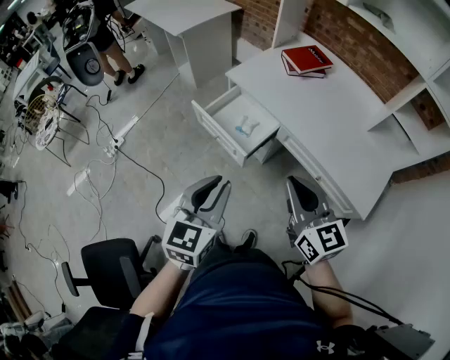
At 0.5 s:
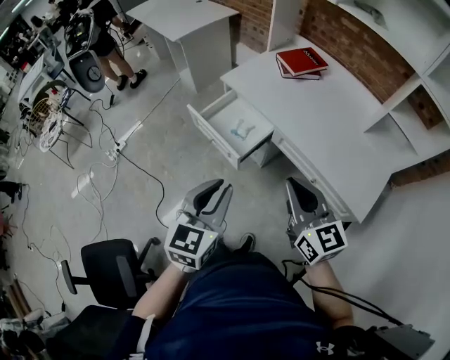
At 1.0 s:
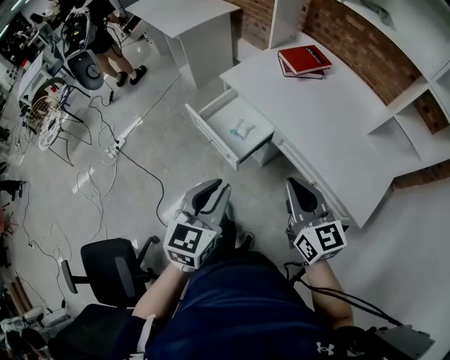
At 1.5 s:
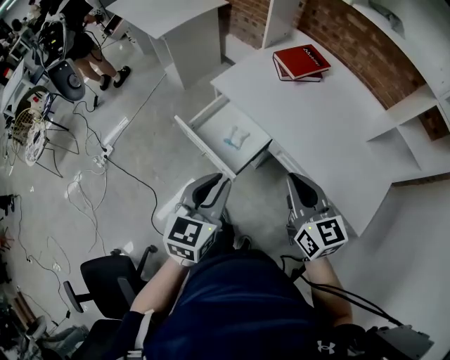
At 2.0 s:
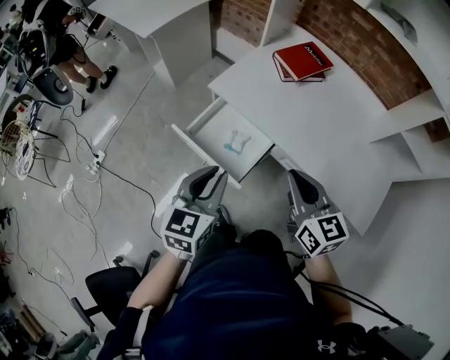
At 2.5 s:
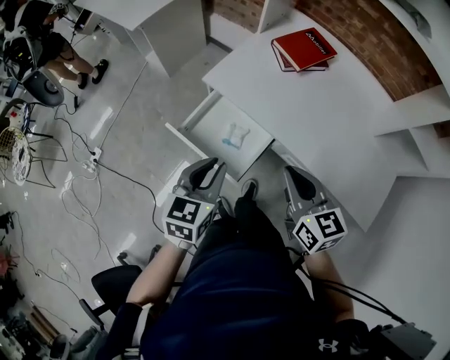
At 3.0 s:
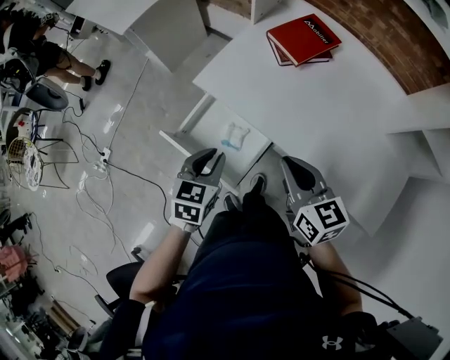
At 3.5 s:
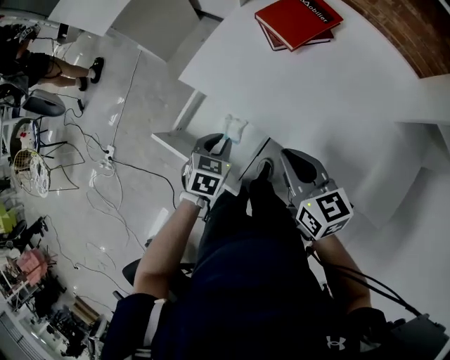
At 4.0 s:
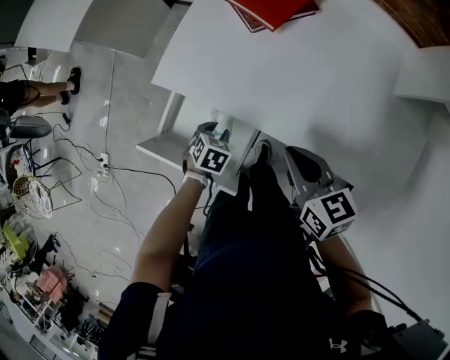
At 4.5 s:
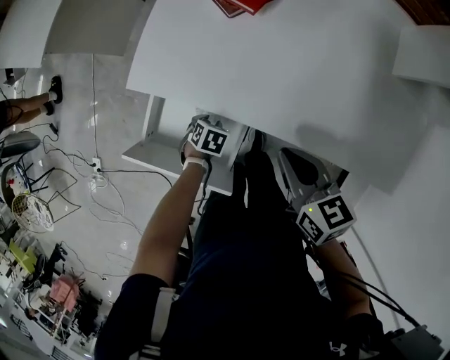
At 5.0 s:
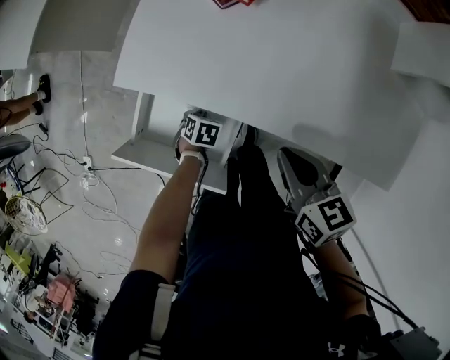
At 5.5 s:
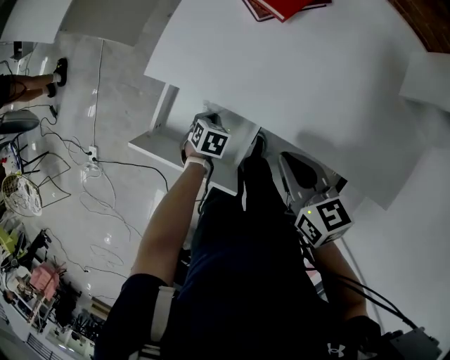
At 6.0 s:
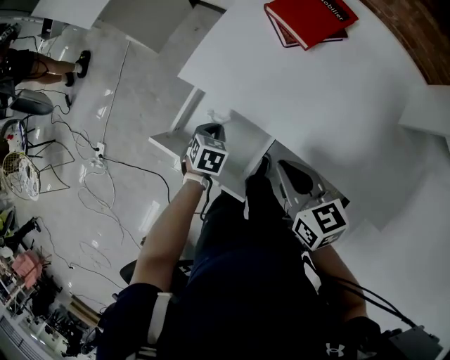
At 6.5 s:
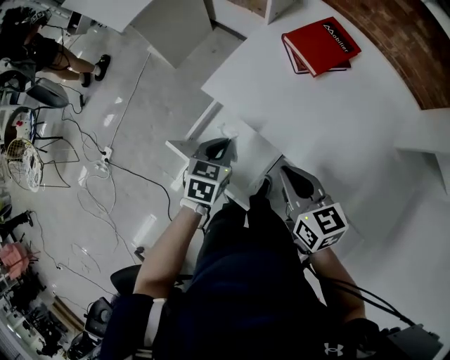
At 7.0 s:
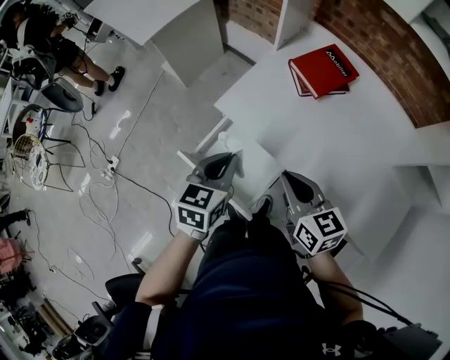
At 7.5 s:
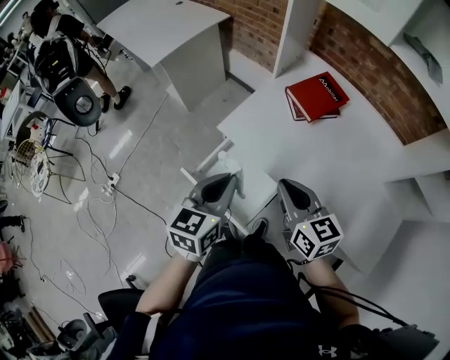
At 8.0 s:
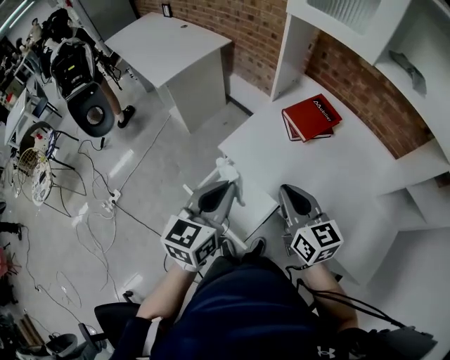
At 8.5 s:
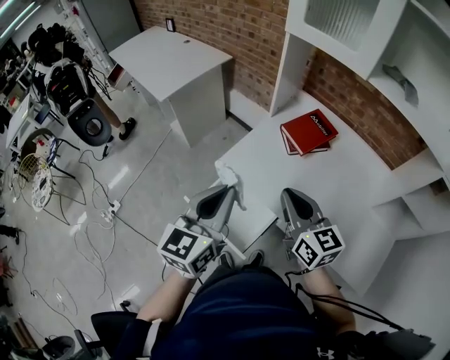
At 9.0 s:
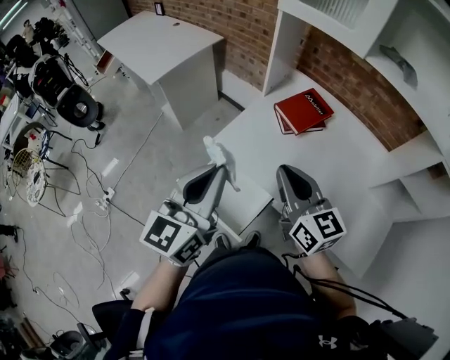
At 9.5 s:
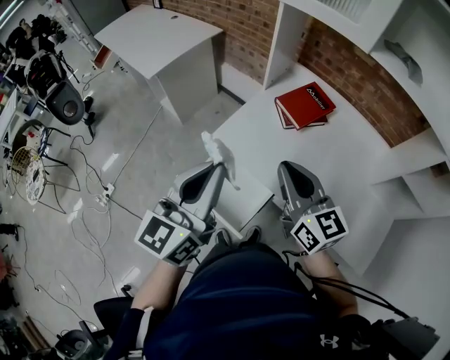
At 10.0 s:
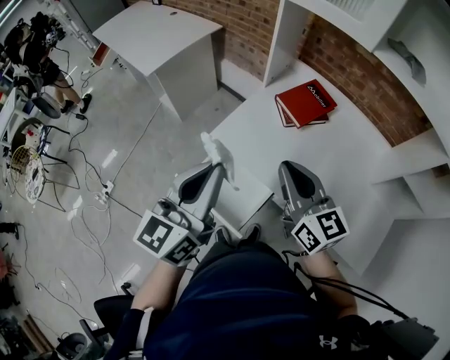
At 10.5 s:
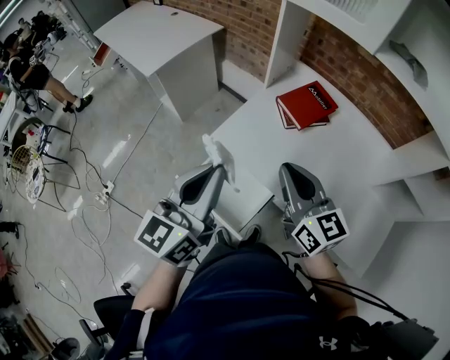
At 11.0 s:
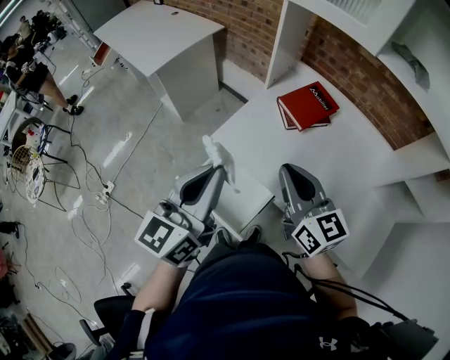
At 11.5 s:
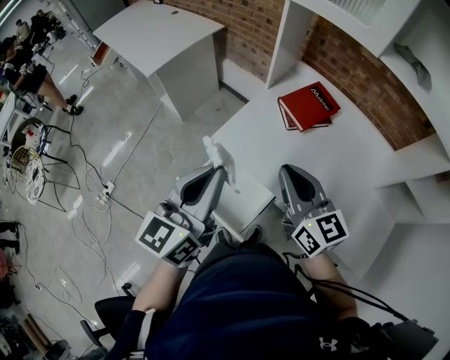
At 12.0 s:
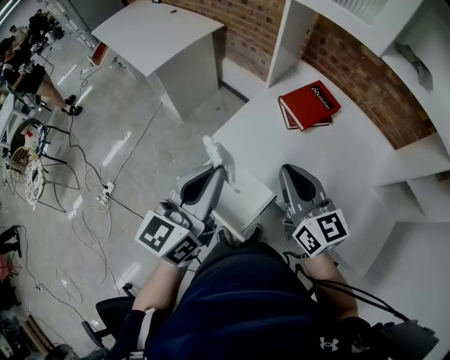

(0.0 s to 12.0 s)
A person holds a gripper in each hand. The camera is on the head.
0.0 s - 2.0 s: Both grippers move forward, about 20 cm.
2.0 s - 4.0 s: The left gripper is displaced downward and forward by approximately 35 cm, and angles its fingers downward, by about 50 degrees. Meanwhile the right gripper travels downward and forward by approximately 15 cm, and rotates some 20 degrees.
4.0 s - 6.0 s: The right gripper moves some 5 cm; the left gripper reaches approximately 10 cm downward, then returns, and closes its fingers.
6.0 s - 8.0 s: The right gripper is displaced upward by some 15 cm, and turns by some 20 degrees. The left gripper moves upward, approximately 35 cm, and tilts its fingers about 50 degrees upward.
8.0 s - 10.0 s: The right gripper shifts some 5 cm upward; the left gripper goes roughly 10 cm upward.
10.0 s - 12.0 s: The grippers stay close to where they were, moving slightly.

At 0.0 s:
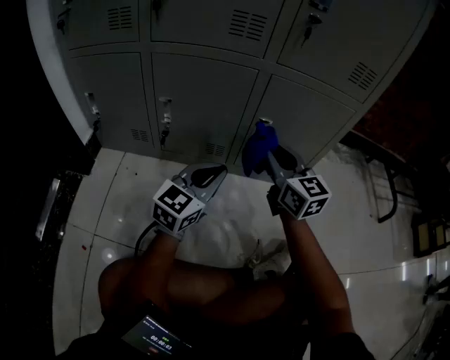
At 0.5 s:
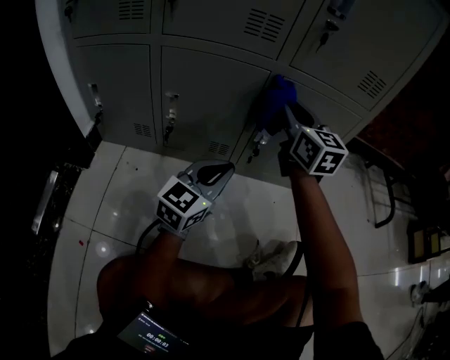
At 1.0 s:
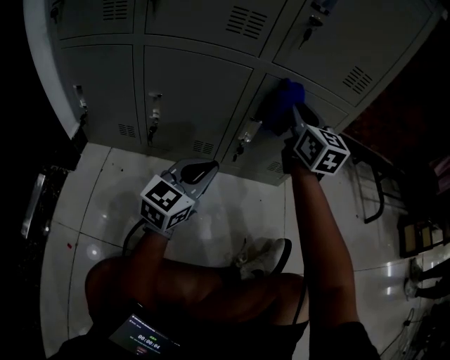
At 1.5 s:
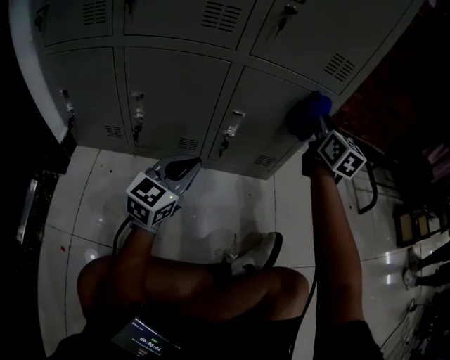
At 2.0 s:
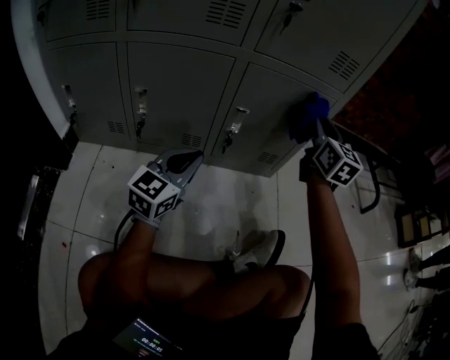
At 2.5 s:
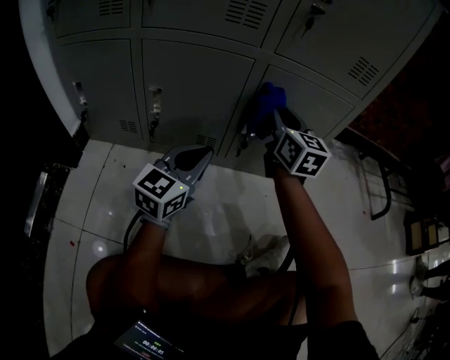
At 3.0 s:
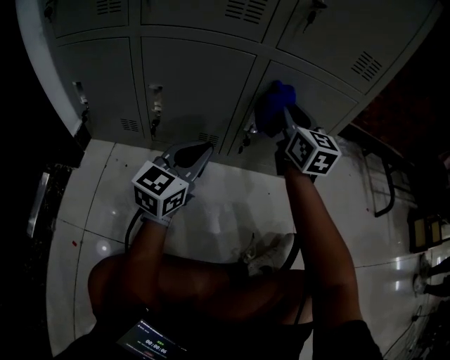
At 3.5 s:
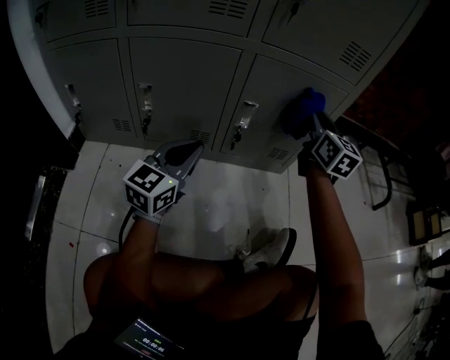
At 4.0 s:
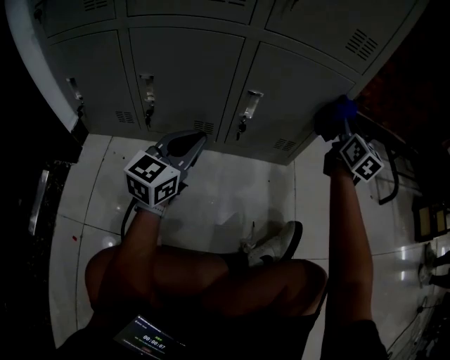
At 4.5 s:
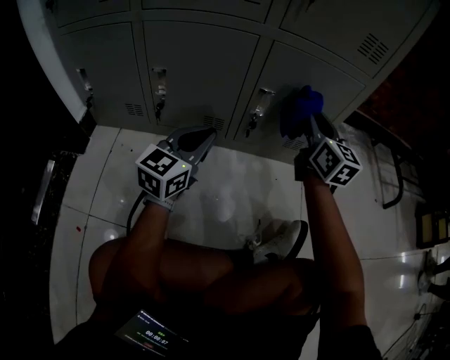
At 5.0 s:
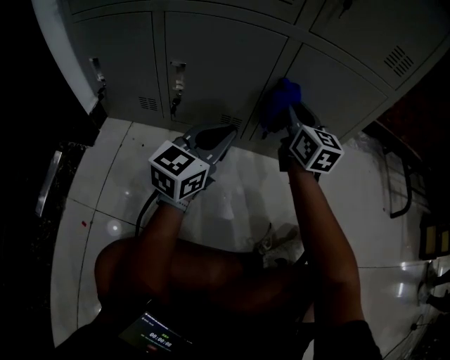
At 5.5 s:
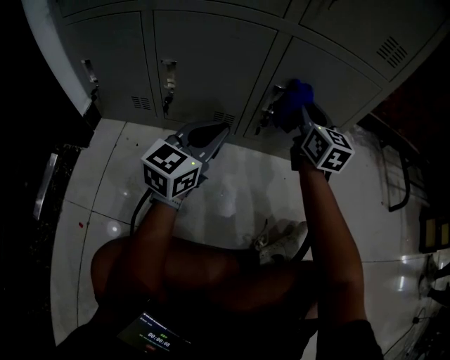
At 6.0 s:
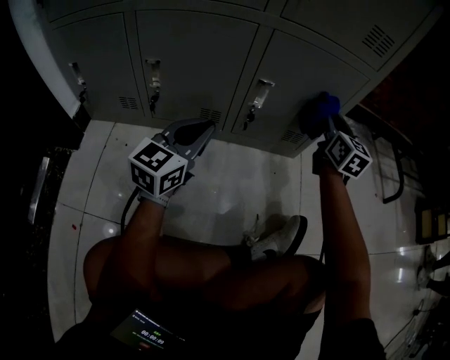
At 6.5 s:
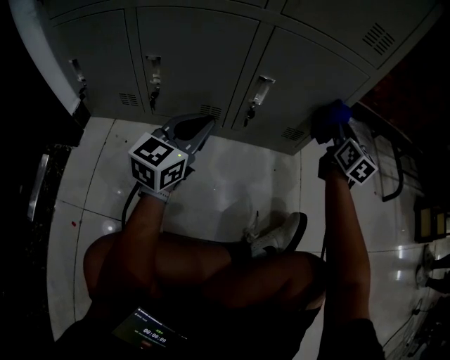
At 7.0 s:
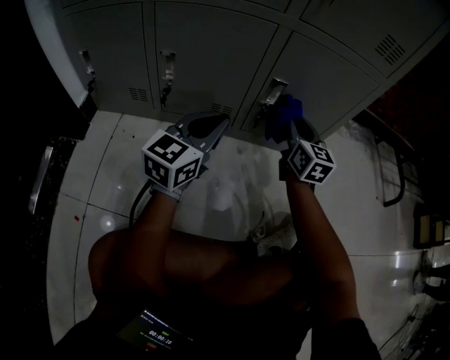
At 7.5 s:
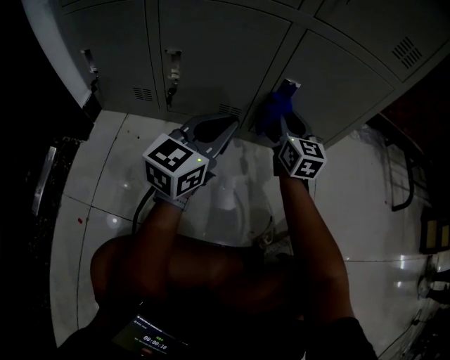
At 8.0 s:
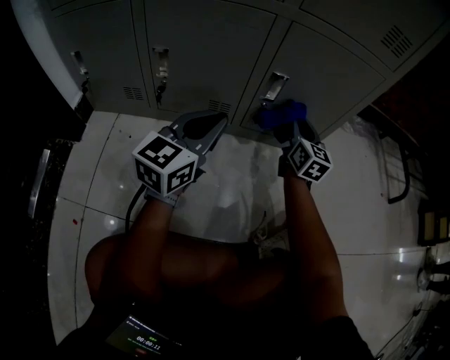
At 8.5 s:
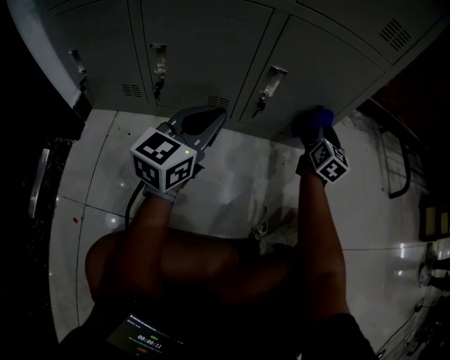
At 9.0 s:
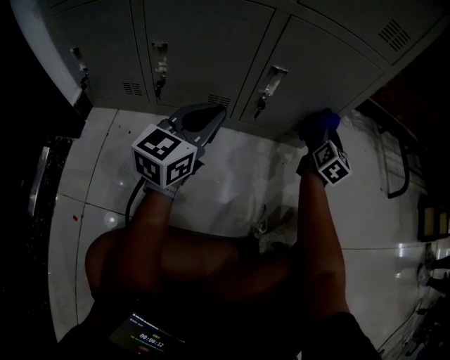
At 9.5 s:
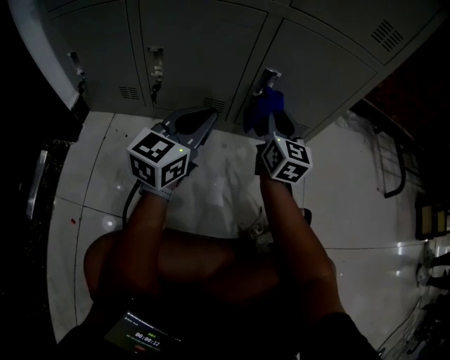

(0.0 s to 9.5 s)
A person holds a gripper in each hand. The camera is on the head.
0.0 s - 2.0 s: The right gripper shifts roughly 20 cm to the right, forward and upward, and swivels some 30 degrees.
2.0 s - 4.0 s: The right gripper moves downward, about 5 cm, and moves roughly 15 cm to the left and comes back.
4.0 s - 5.5 s: The right gripper moves to the left, approximately 20 cm.
5.5 s - 7.5 s: The right gripper moves downward, some 10 cm, and goes to the right and returns, roughly 20 cm each way.
7.5 s - 9.5 s: The right gripper travels to the right and back again, some 20 cm each way.

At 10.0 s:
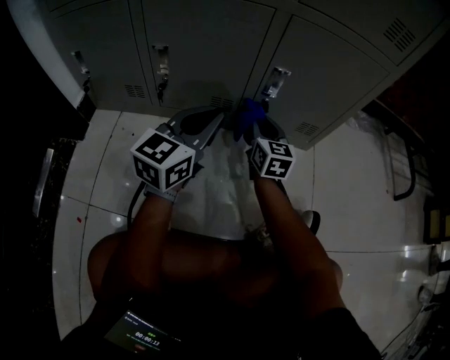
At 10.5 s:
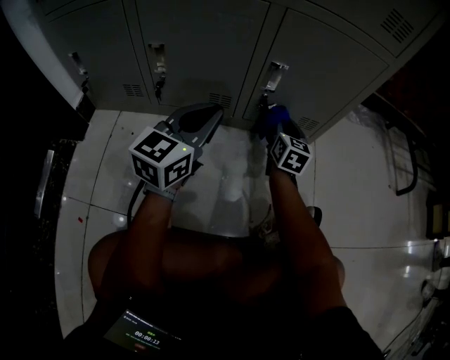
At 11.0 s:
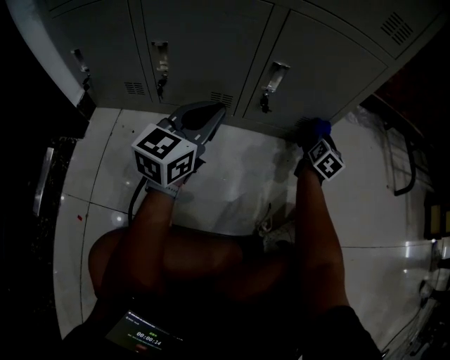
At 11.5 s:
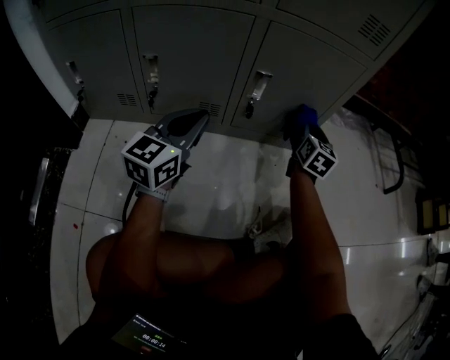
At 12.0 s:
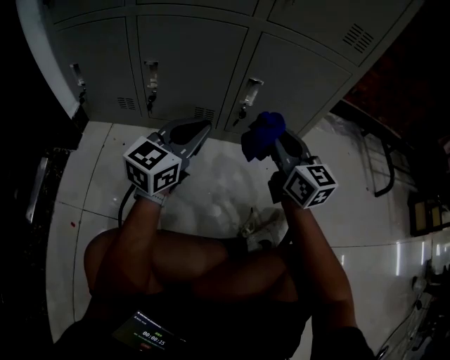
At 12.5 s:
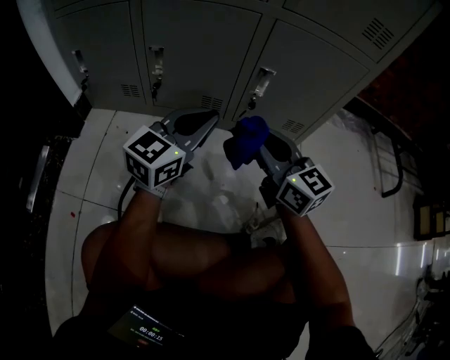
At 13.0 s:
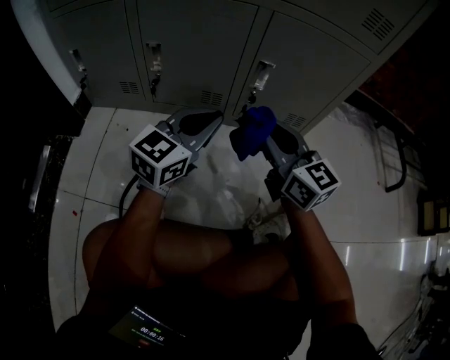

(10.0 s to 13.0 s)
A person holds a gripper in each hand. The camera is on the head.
10.0 s - 11.5 s: The right gripper is displaced to the right by approximately 20 cm, and turns by approximately 20 degrees.
11.5 s - 13.0 s: The right gripper shifts some 25 cm to the left, backward and upward, and swivels about 50 degrees.

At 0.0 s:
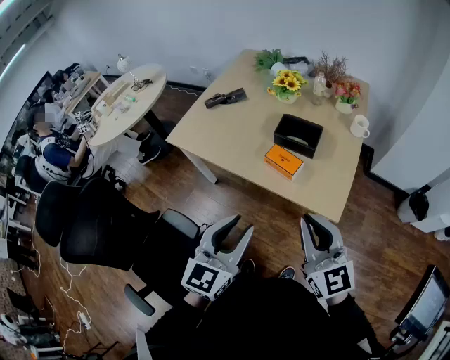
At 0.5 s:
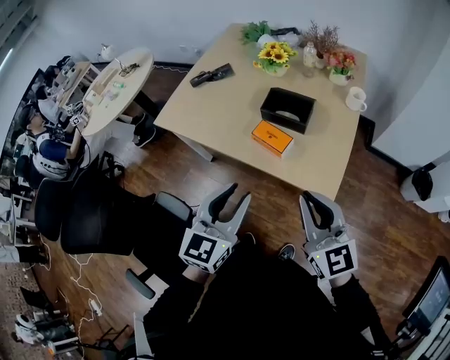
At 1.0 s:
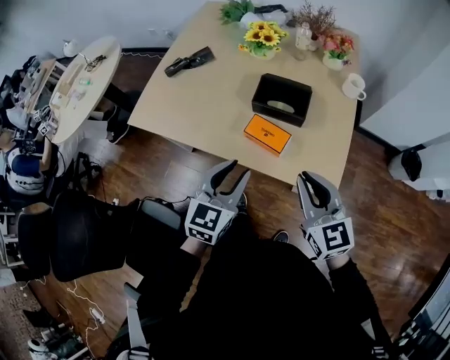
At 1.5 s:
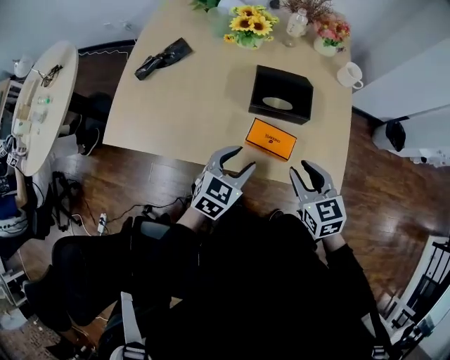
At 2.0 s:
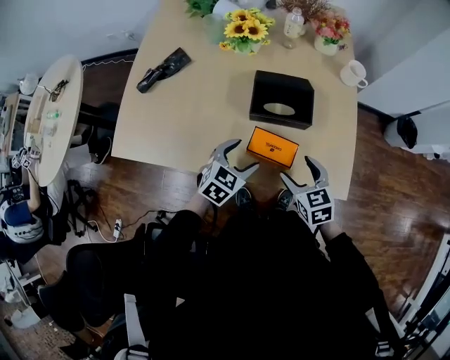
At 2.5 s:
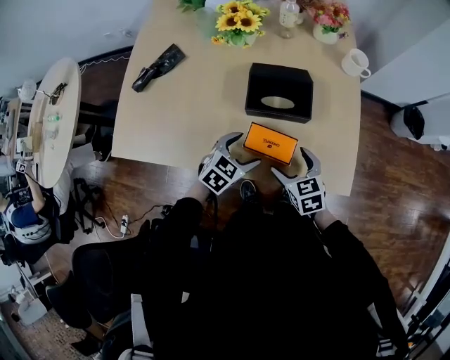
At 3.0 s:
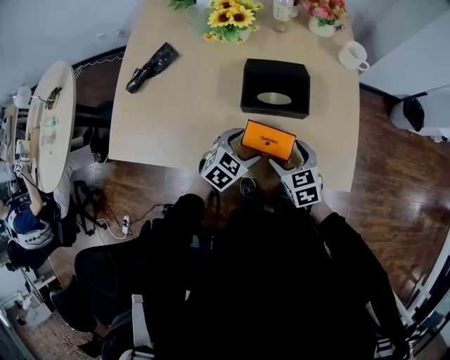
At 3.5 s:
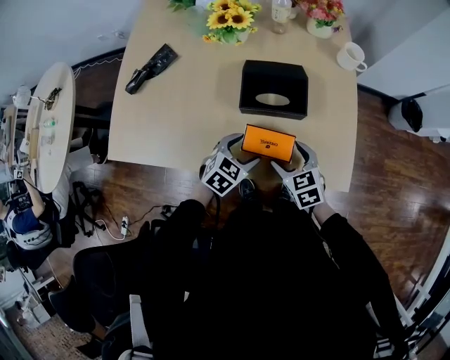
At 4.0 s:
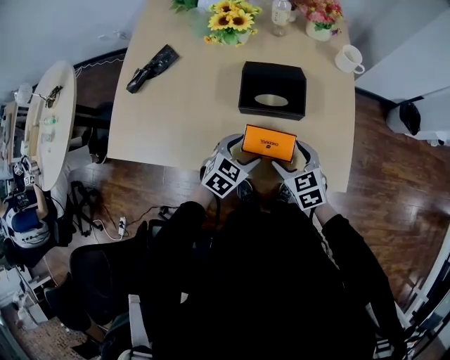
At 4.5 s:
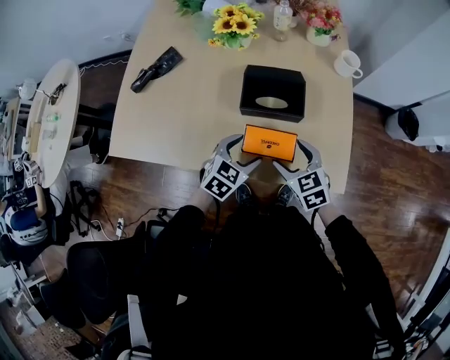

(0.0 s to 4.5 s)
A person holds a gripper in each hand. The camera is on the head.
0.0 s - 2.0 s: The left gripper moves approximately 40 cm, points its fingers approximately 30 degrees further downward, and opens; the right gripper is displaced downward by approximately 30 cm, angles its fingers downward, by approximately 40 degrees, and opens.
